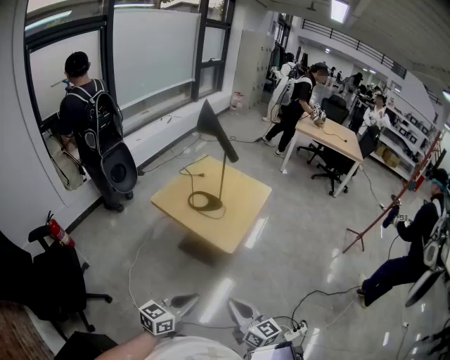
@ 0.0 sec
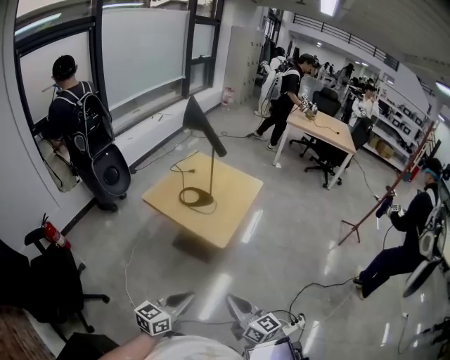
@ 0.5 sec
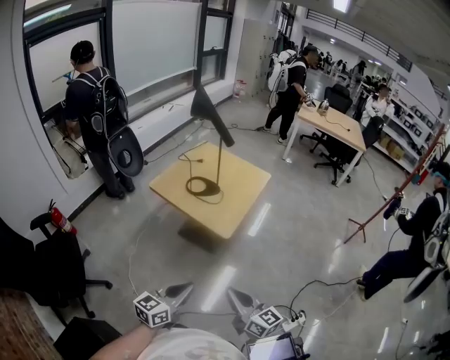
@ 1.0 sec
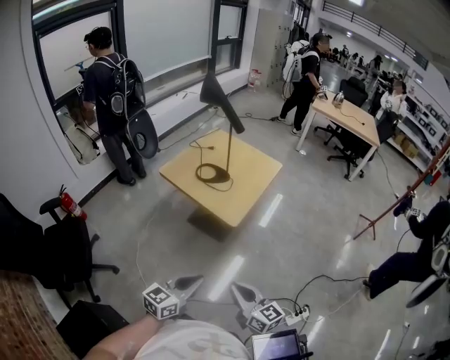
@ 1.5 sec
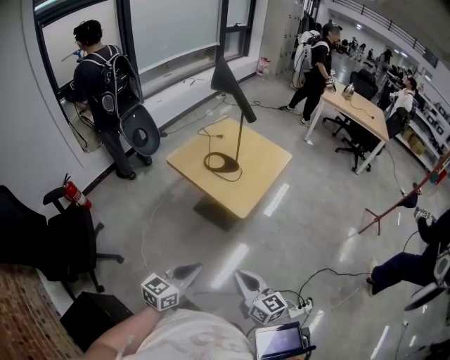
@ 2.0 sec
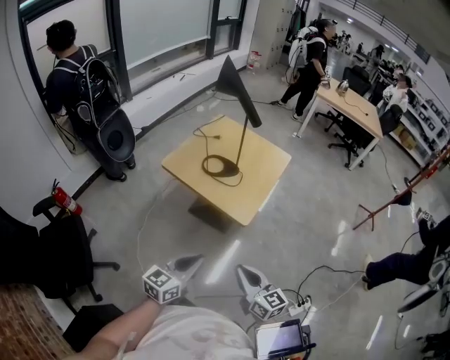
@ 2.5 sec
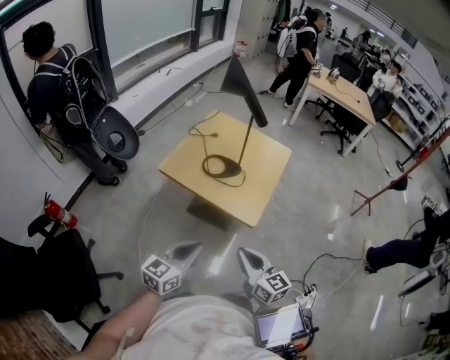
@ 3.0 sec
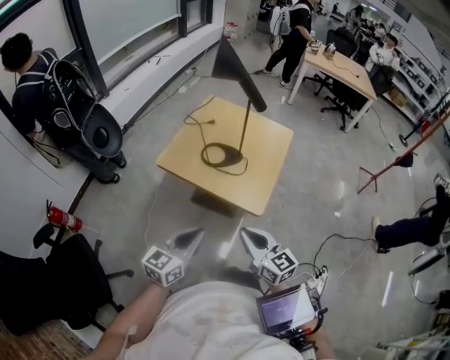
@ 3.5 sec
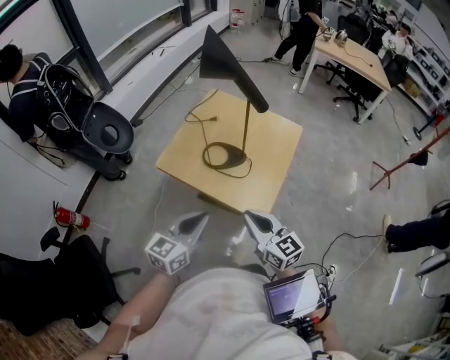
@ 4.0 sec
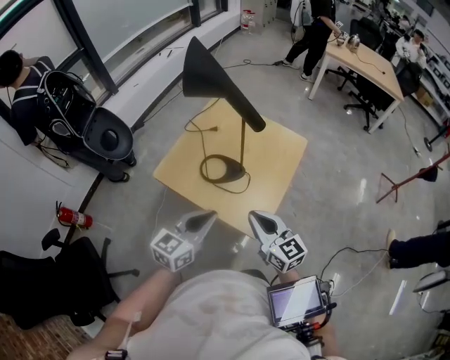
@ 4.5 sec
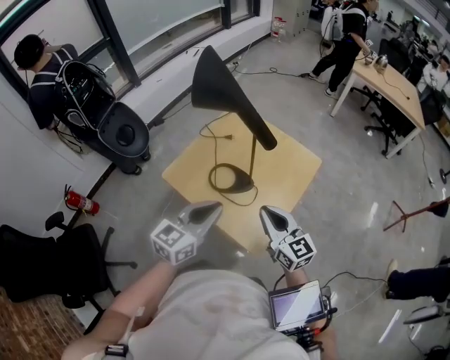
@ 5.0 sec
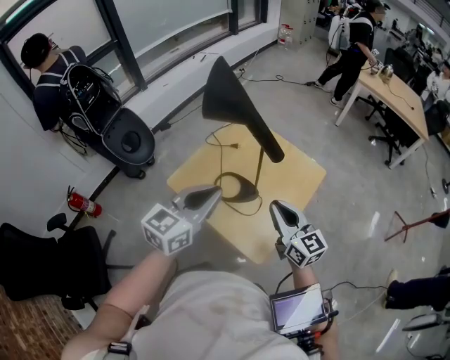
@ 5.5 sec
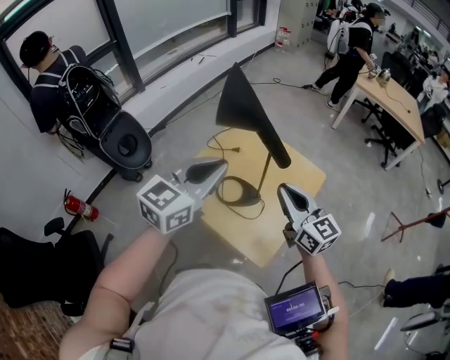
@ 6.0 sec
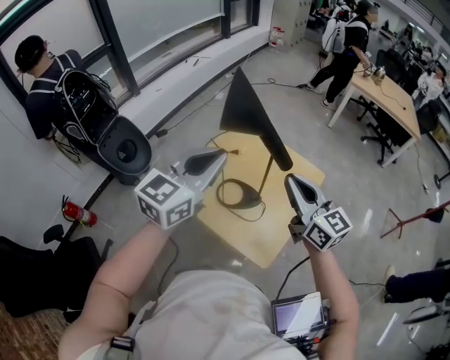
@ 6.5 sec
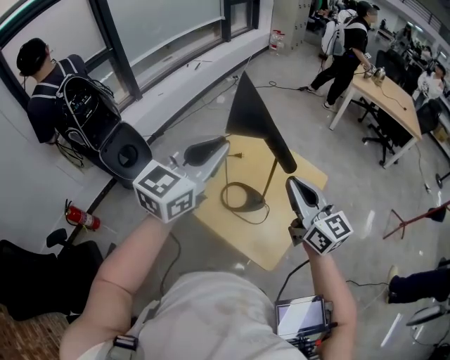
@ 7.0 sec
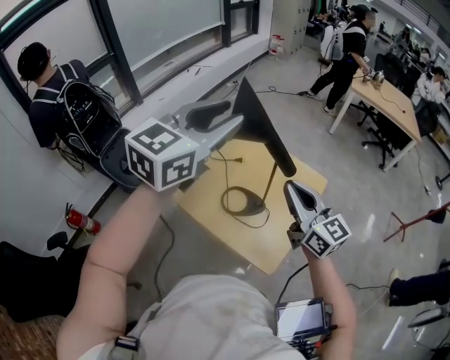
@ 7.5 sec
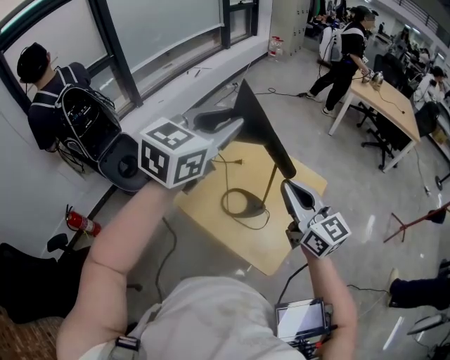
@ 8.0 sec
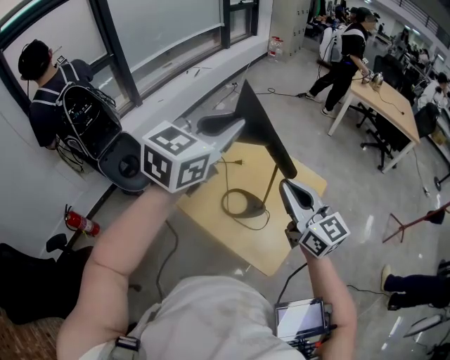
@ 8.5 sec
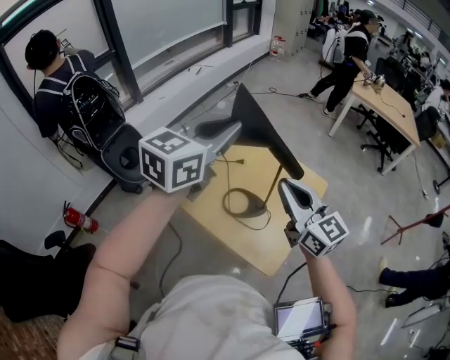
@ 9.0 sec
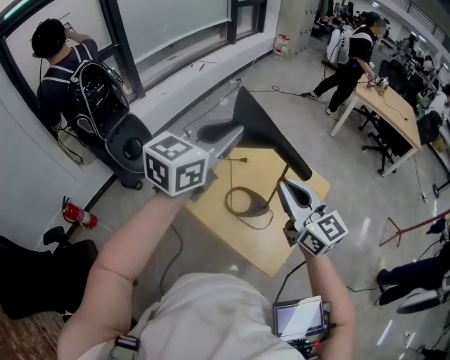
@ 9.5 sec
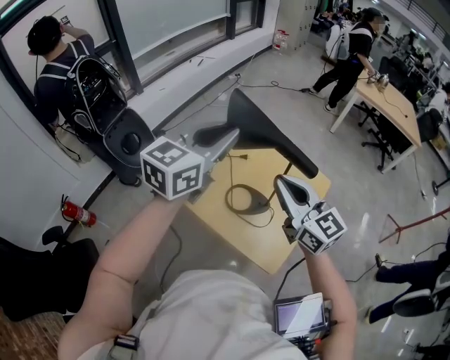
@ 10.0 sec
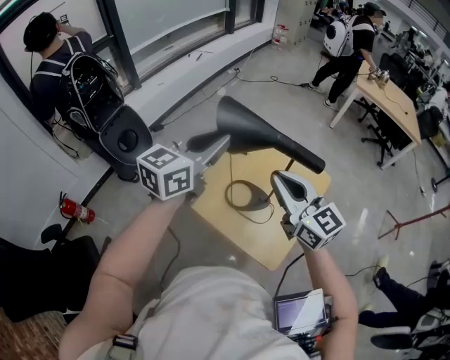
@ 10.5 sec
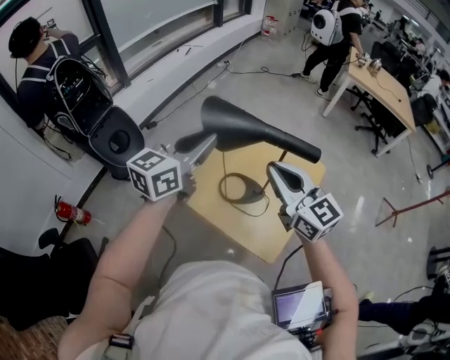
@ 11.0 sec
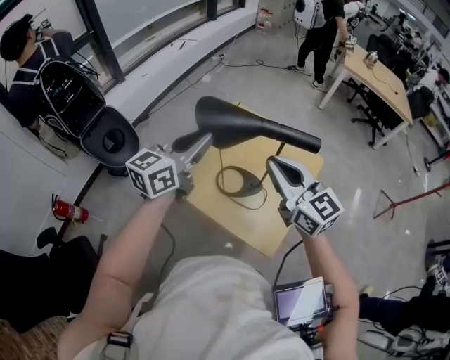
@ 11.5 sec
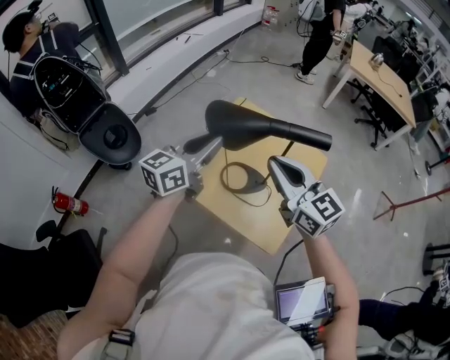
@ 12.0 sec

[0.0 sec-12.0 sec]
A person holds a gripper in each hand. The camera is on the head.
0.0 sec to 2.0 sec: The grippers make only small movements.
2.0 sec to 4.0 sec: The grippers both shift forward by approximately 30 cm.
4.0 sec to 6.0 sec: The grippers both shift forward and upward by approximately 25 cm.
6.0 sec to 8.0 sec: The left gripper shifts roughly 15 cm upward and forward, and opens up, while the right gripper is displaced upward by some 5 cm.
8.0 sec to 10.0 sec: The left gripper goes some 5 cm downward. Meanwhile the right gripper goes some 5 cm to the left.
10.0 sec to 12.0 sec: The left gripper moves downward, roughly 15 cm.

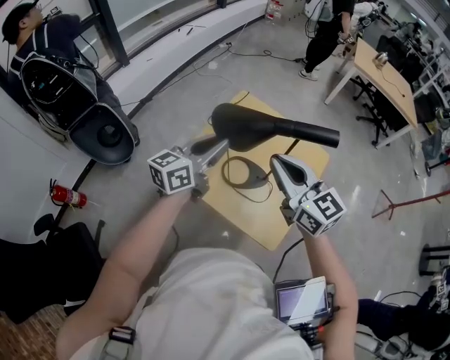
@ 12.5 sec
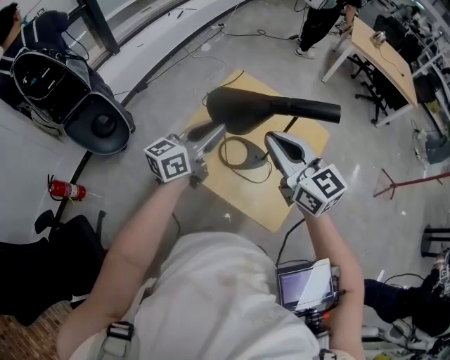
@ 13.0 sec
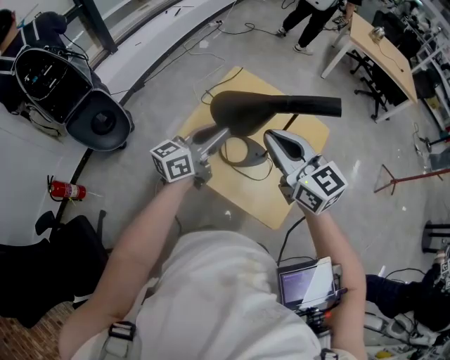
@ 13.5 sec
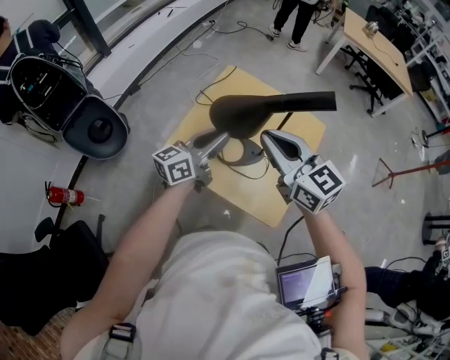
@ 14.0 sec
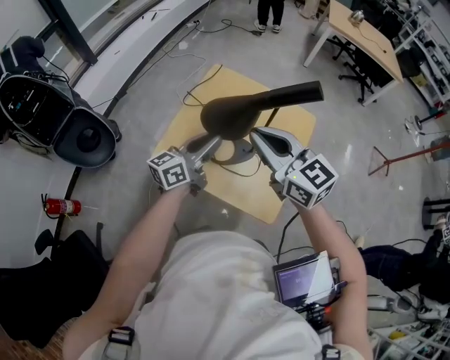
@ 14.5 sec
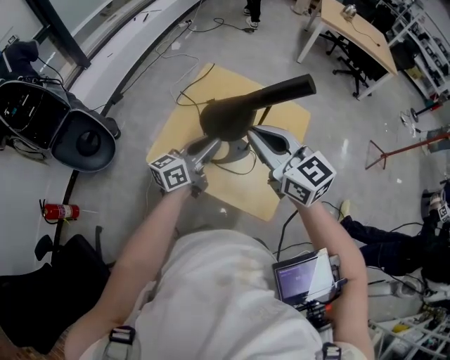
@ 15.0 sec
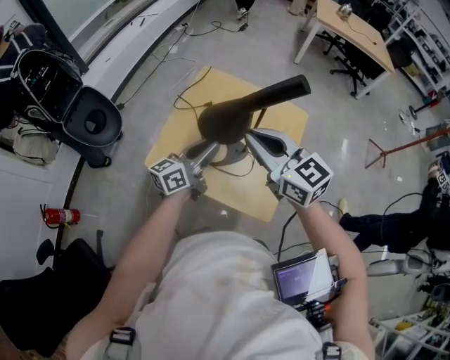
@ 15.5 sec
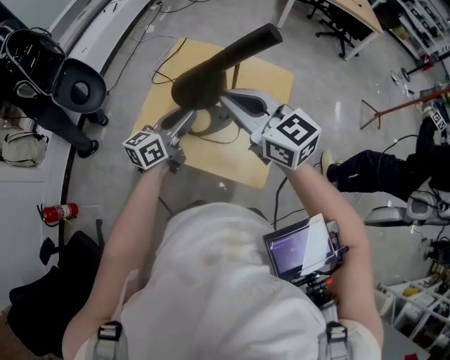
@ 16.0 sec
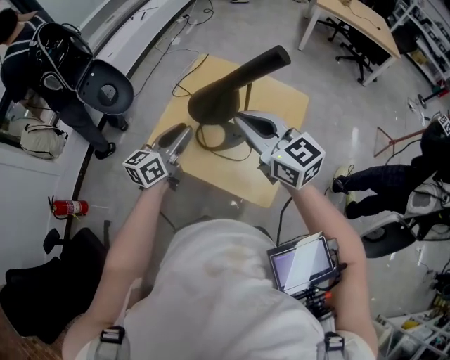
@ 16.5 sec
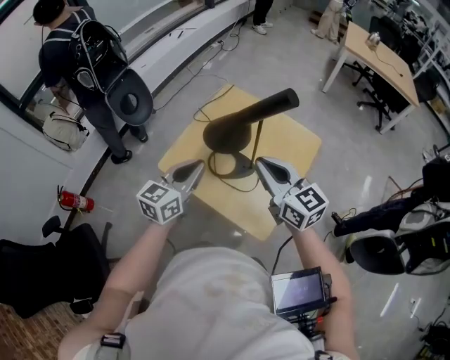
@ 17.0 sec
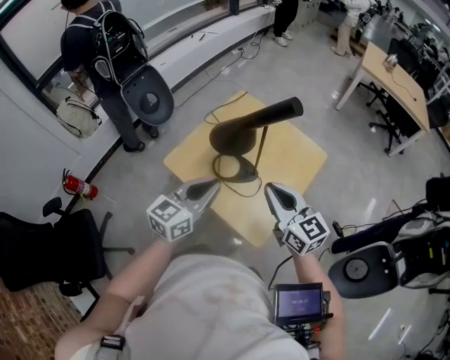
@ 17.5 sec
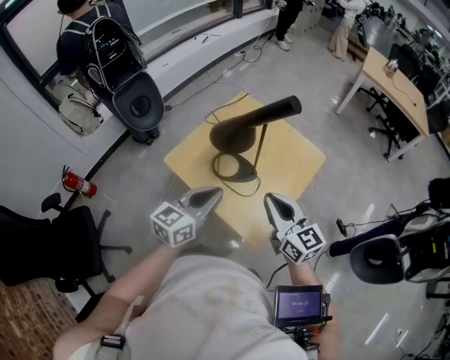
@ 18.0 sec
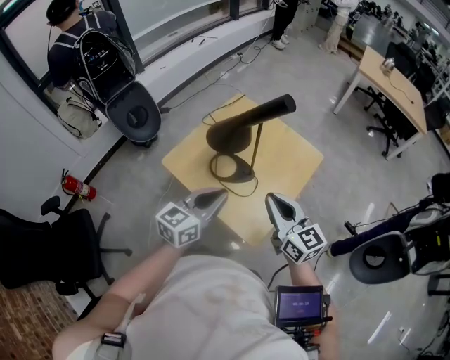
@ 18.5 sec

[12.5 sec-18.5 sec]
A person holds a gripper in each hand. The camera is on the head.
12.5 sec to 14.5 sec: The left gripper heads downward and to the right, covering some 10 cm.
14.5 sec to 16.5 sec: The grippers stay close to where they were, moving slightly.
16.5 sec to 18.5 sec: The right gripper moves backward, to the right and downward, about 15 cm; the left gripper shifts roughly 15 cm backward and to the right, and closes its fingers.

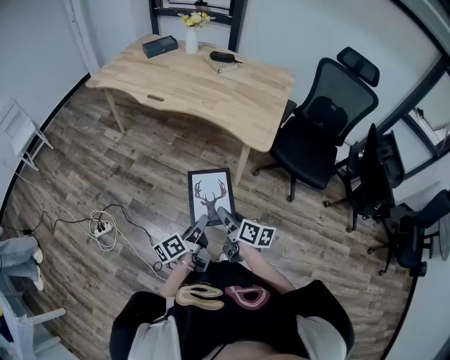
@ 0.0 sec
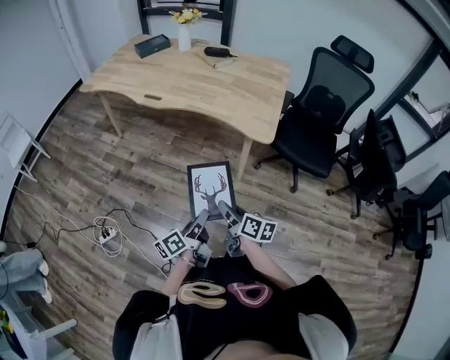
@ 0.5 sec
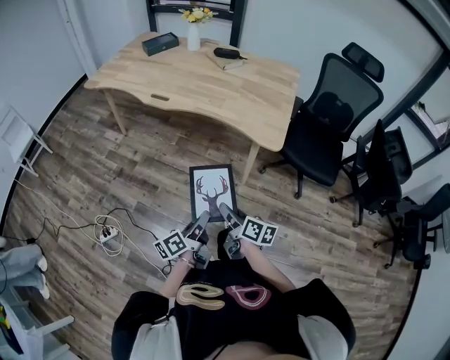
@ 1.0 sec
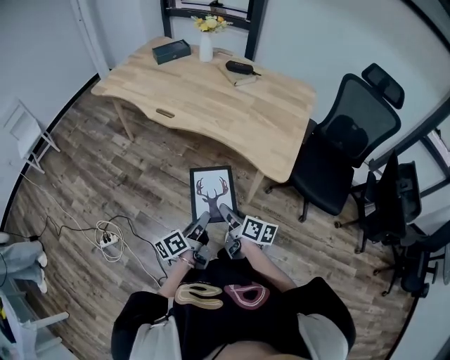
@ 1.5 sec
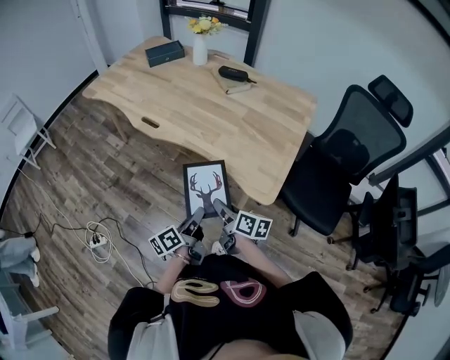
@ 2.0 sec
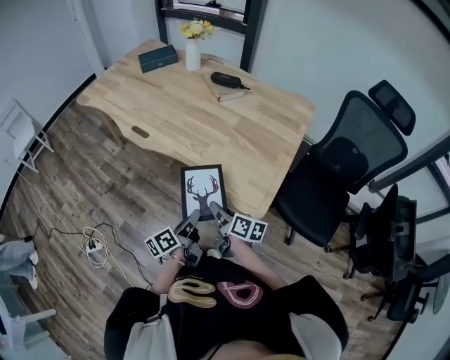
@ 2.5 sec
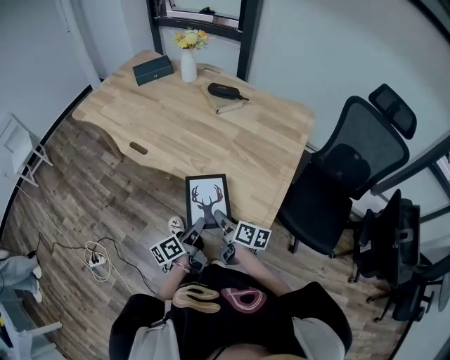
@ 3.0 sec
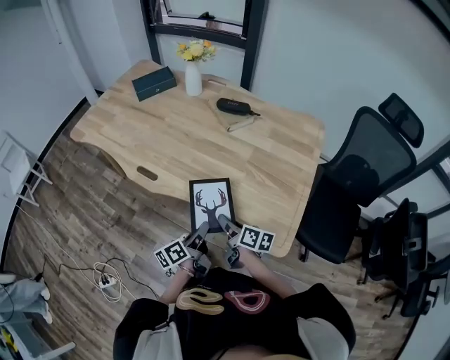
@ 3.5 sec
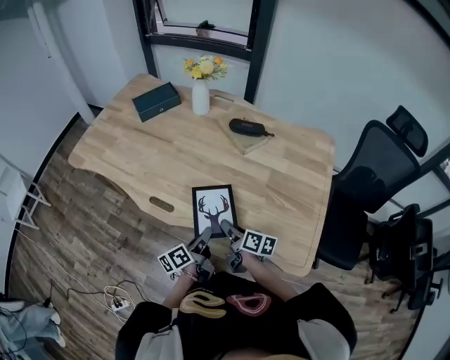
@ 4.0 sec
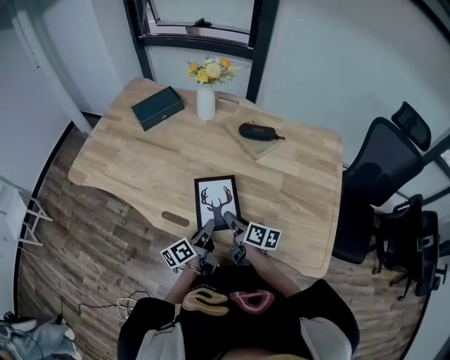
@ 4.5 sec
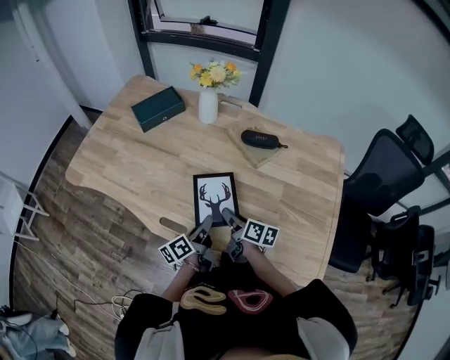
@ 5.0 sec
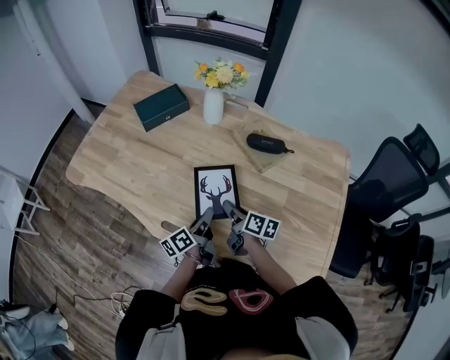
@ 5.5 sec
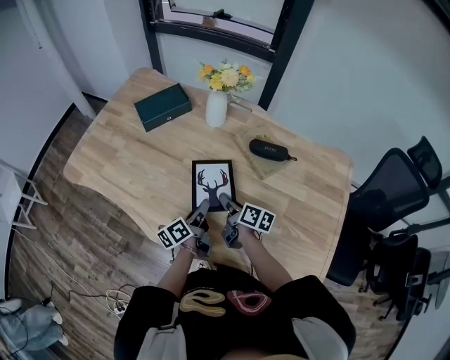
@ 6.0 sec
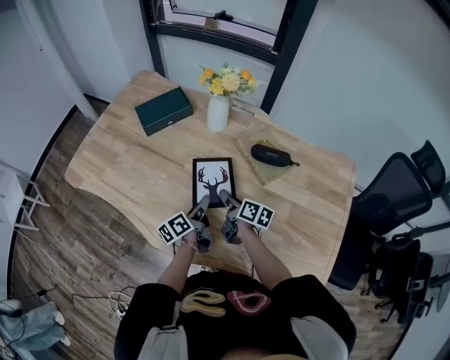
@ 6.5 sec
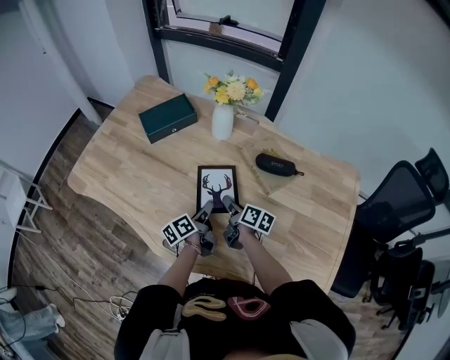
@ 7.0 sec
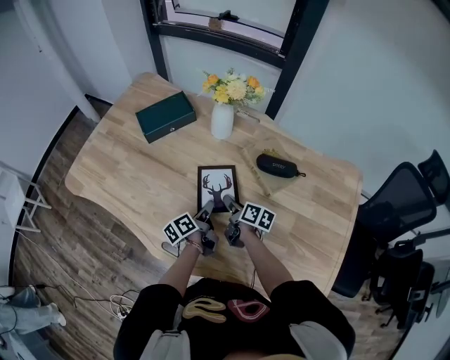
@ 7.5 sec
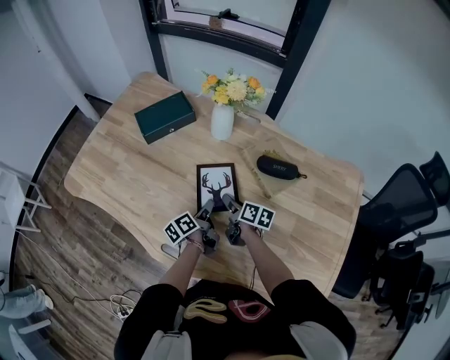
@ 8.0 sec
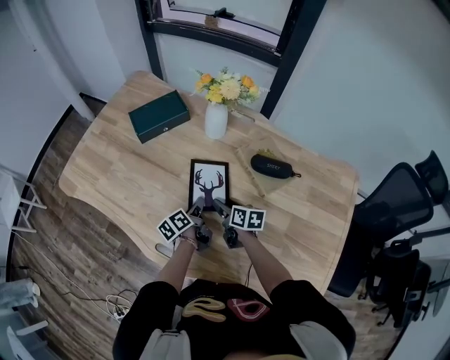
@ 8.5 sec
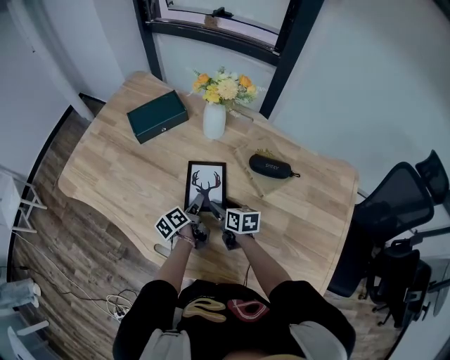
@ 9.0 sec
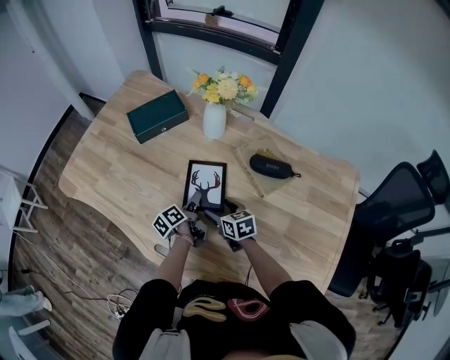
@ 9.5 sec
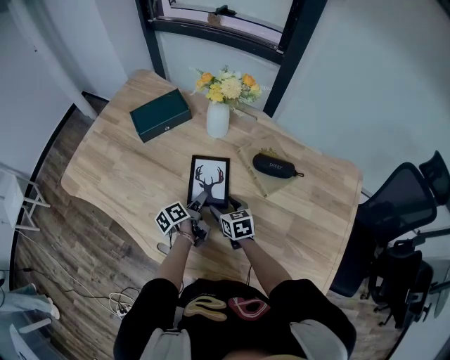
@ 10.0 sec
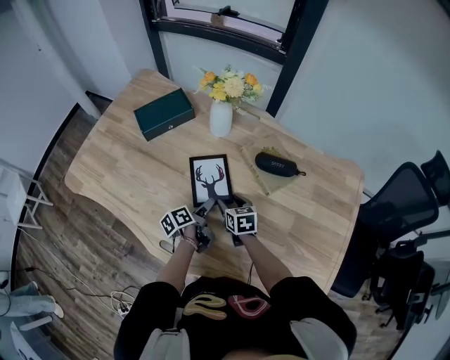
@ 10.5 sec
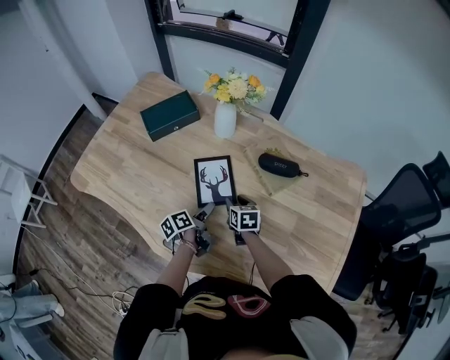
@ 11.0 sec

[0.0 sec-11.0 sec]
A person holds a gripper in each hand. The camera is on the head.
0.0 sec to 2.0 sec: The grippers both shift forward by some 25 cm.
2.0 sec to 3.5 sec: The grippers both shift forward by some 20 cm.
3.5 sec to 5.5 sec: Both grippers travel together forward and to the left, about 30 cm.
5.5 sec to 7.5 sec: The grippers both shift forward and downward by roughly 15 cm.
7.5 sec to 9.0 sec: The left gripper opens its fingers. The right gripper turns by about 30 degrees.
9.0 sec to 11.0 sec: The left gripper changes place by roughly 5 cm.
